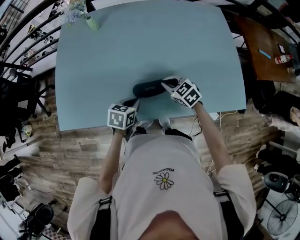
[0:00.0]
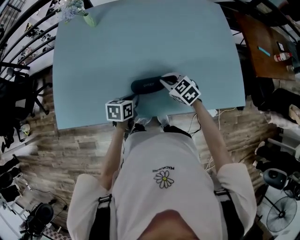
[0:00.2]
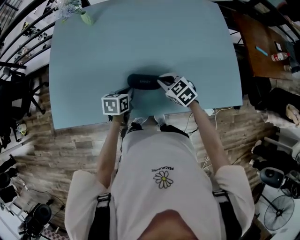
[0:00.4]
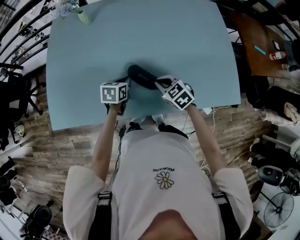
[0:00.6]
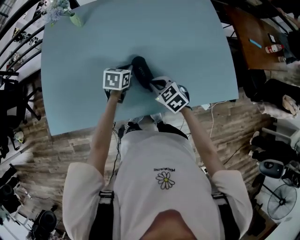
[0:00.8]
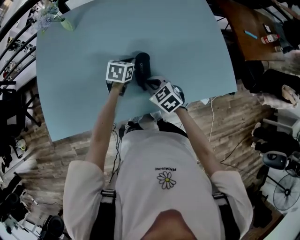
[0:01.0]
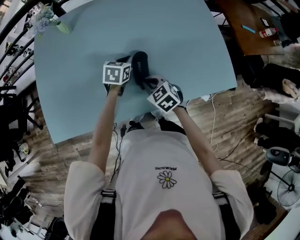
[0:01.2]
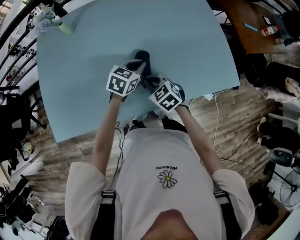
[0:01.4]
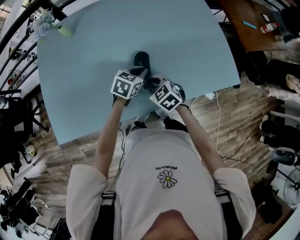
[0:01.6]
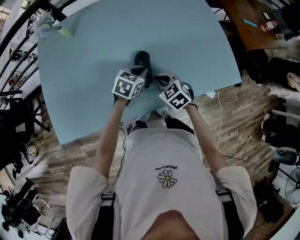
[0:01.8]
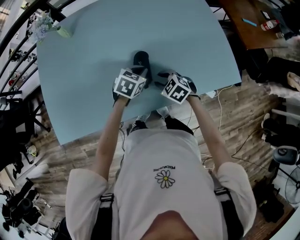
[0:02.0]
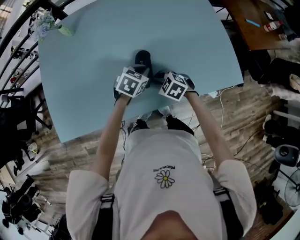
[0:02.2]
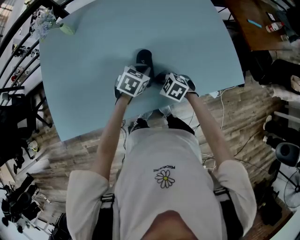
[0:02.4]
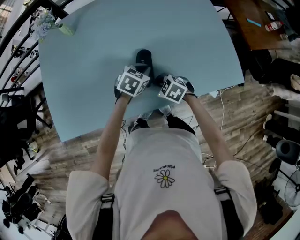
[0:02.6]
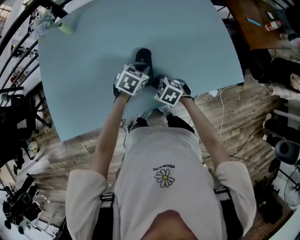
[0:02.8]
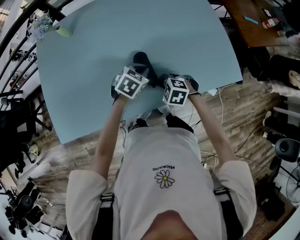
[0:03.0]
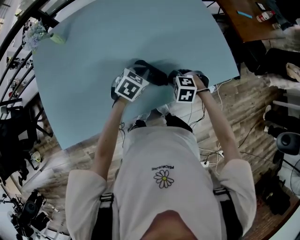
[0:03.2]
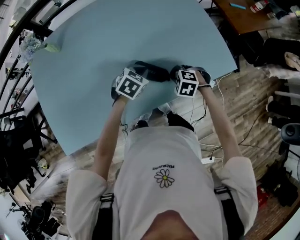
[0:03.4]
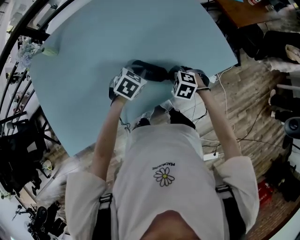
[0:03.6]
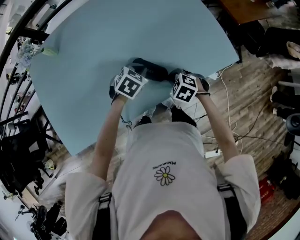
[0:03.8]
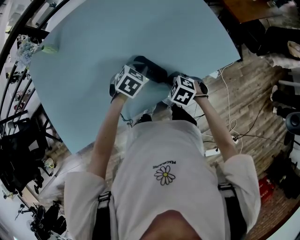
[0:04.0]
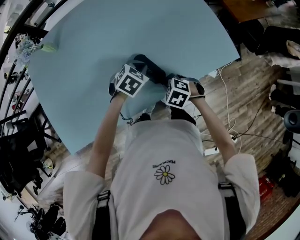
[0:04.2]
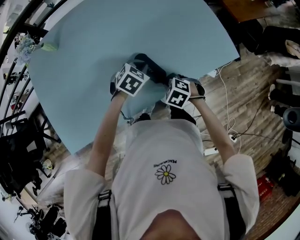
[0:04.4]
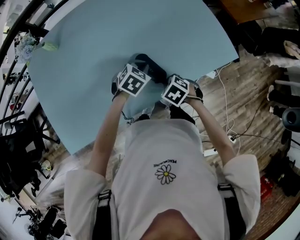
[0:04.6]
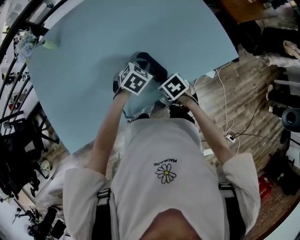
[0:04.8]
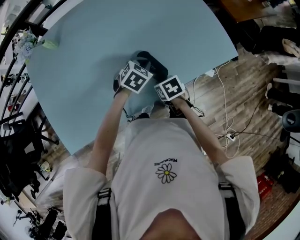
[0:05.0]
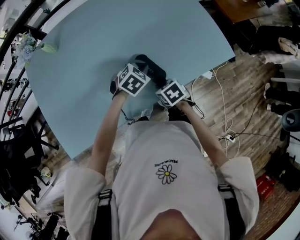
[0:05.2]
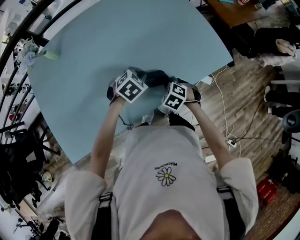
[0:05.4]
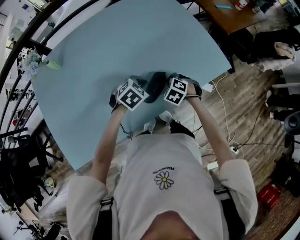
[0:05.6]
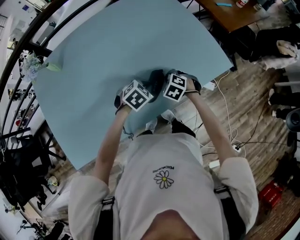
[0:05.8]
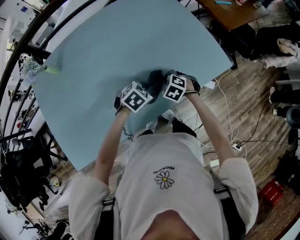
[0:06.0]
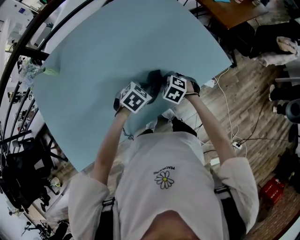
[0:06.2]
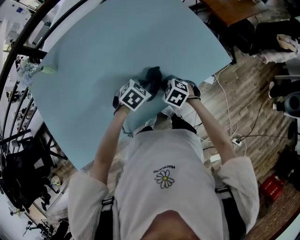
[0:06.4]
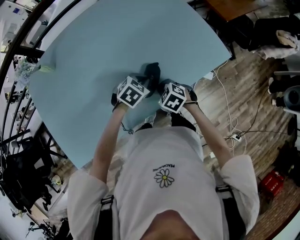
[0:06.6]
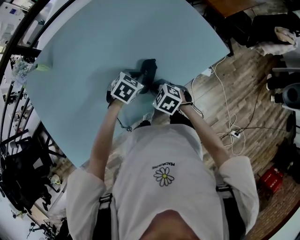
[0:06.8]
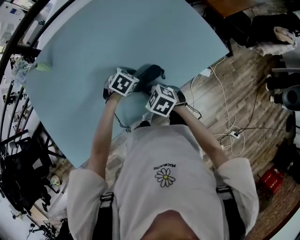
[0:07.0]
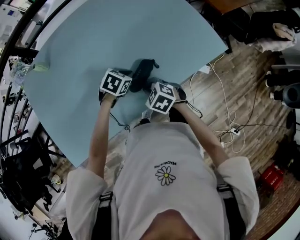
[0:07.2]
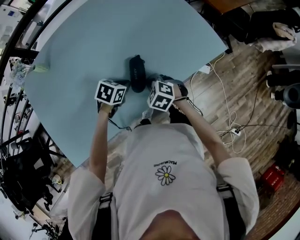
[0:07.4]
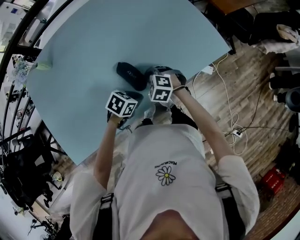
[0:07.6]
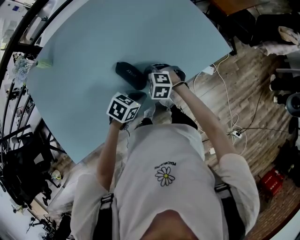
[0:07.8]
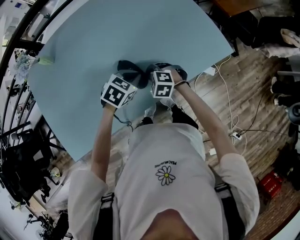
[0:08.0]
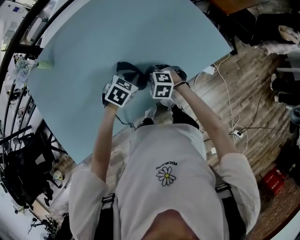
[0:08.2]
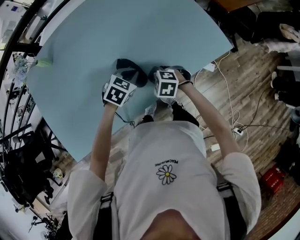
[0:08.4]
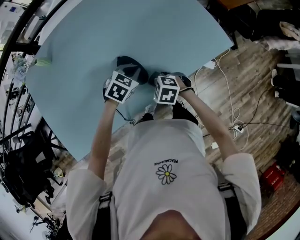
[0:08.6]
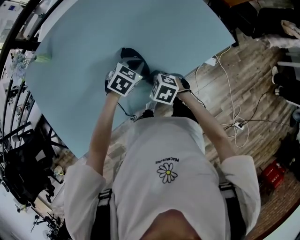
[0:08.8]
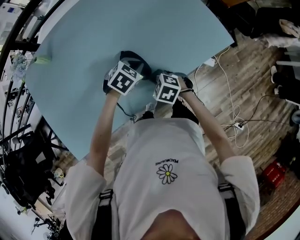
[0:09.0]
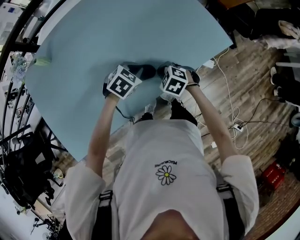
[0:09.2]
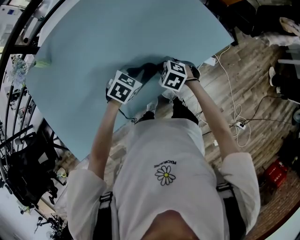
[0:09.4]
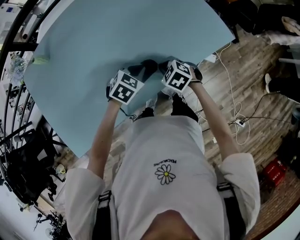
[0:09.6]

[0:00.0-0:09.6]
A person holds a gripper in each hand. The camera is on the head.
0:00.0 to 0:01.6: The left gripper is displaced to the right and forward by approximately 15 cm, and swivels about 30 degrees.
0:01.6 to 0:03.2: The right gripper goes left and right, some 10 cm each way, reversing 2 times, turns by roughly 40 degrees, and opens, then closes again.
0:03.2 to 0:04.8: The right gripper travels backward by about 5 cm, and twists some 60 degrees clockwise, seen from behind.
0:04.8 to 0:06.4: The right gripper changes its angle by some 30 degrees.
0:06.4 to 0:08.0: The right gripper changes its angle by about 20 degrees.
0:08.0 to 0:09.6: The right gripper shifts about 5 cm to the right, and swivels roughly 30 degrees.

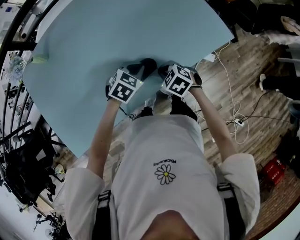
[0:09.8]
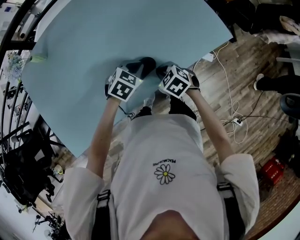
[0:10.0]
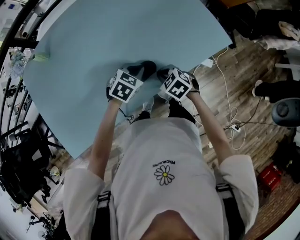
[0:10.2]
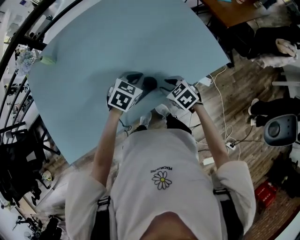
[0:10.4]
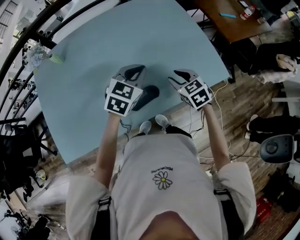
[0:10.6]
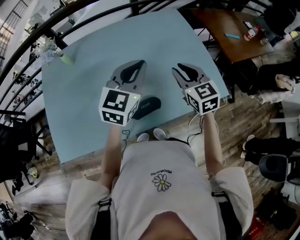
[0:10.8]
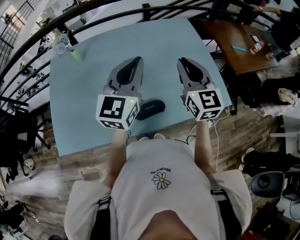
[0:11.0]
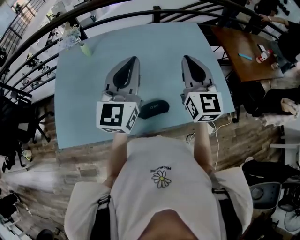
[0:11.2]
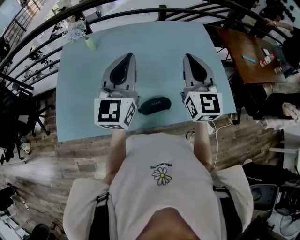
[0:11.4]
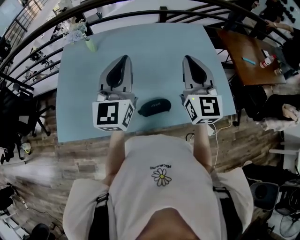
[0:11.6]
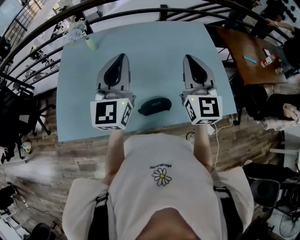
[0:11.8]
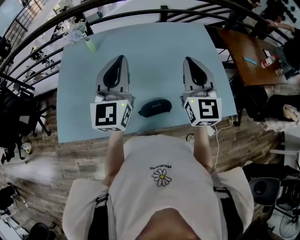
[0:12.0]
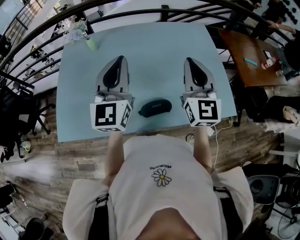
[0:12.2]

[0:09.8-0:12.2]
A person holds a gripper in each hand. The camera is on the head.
0:09.8 to 0:11.0: The two grippers go approximately 35 cm upward. The left gripper angles its fingers upward, by some 60 degrees, while the right gripper tilts its fingers approximately 60 degrees upward, and opens and closes again.
0:11.0 to 0:12.2: The left gripper goes roughly 10 cm to the left, and rotates approximately 20 degrees. The right gripper ends up roughly 5 cm from where it was.

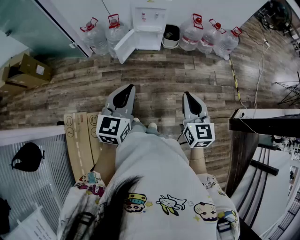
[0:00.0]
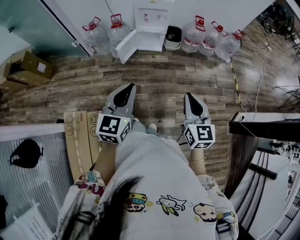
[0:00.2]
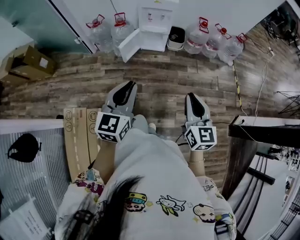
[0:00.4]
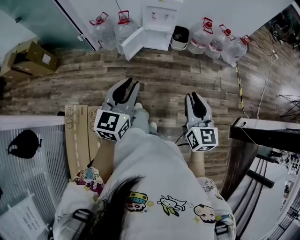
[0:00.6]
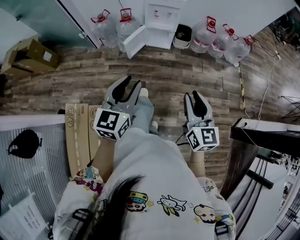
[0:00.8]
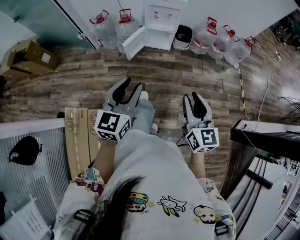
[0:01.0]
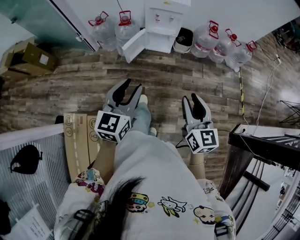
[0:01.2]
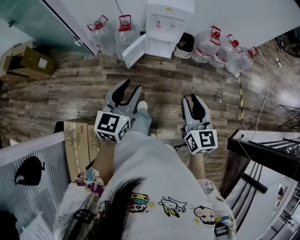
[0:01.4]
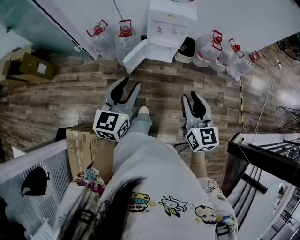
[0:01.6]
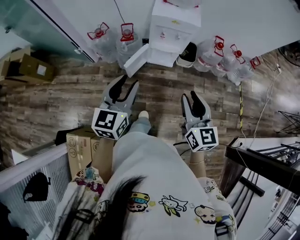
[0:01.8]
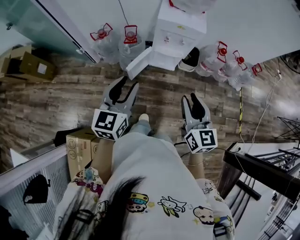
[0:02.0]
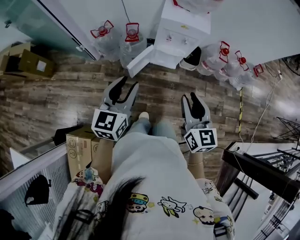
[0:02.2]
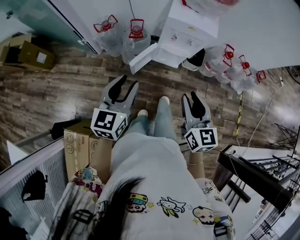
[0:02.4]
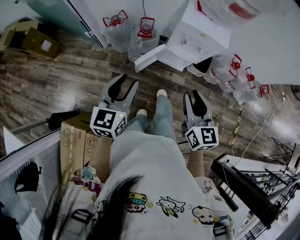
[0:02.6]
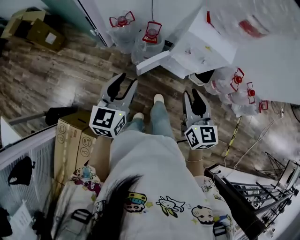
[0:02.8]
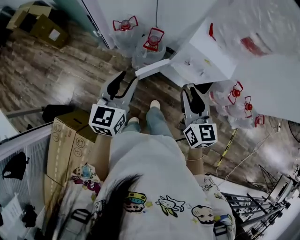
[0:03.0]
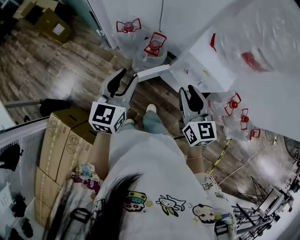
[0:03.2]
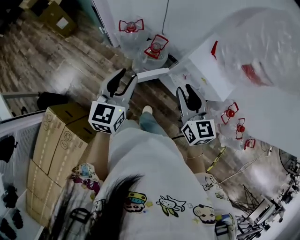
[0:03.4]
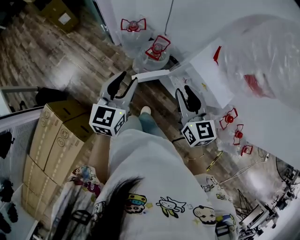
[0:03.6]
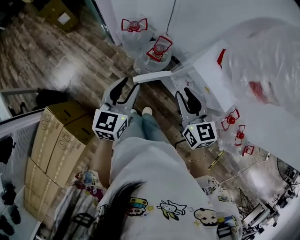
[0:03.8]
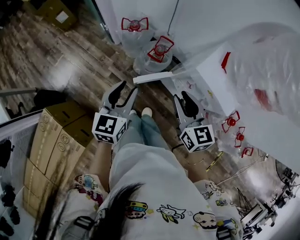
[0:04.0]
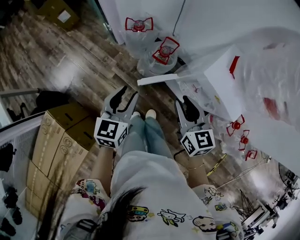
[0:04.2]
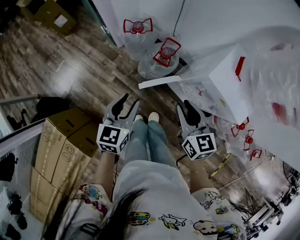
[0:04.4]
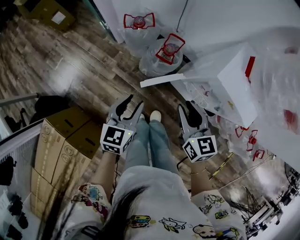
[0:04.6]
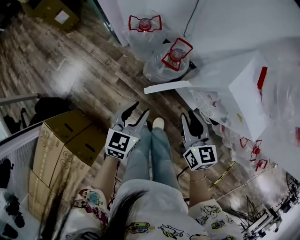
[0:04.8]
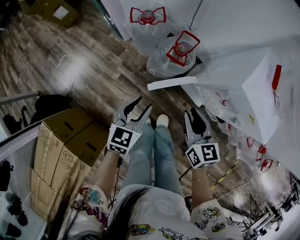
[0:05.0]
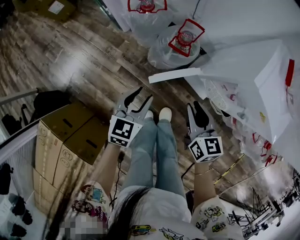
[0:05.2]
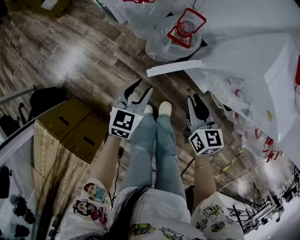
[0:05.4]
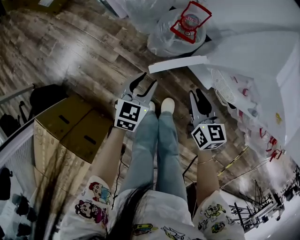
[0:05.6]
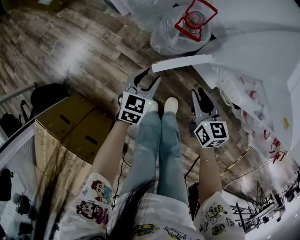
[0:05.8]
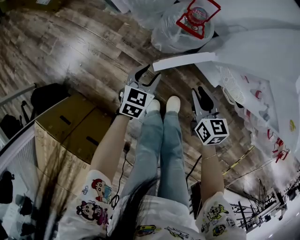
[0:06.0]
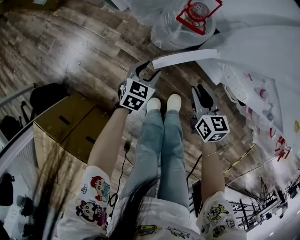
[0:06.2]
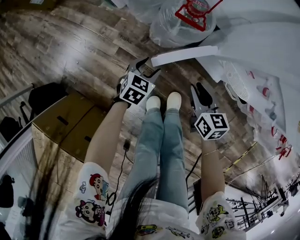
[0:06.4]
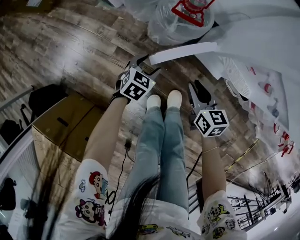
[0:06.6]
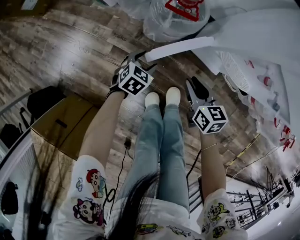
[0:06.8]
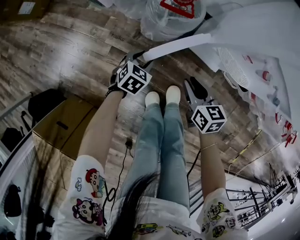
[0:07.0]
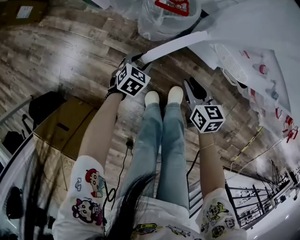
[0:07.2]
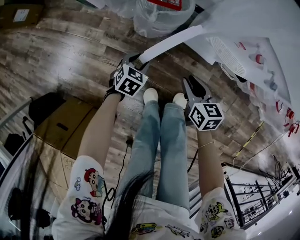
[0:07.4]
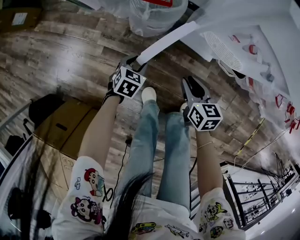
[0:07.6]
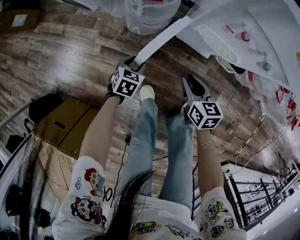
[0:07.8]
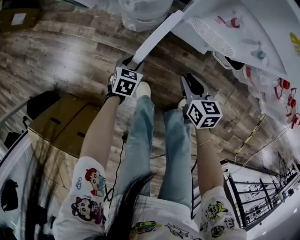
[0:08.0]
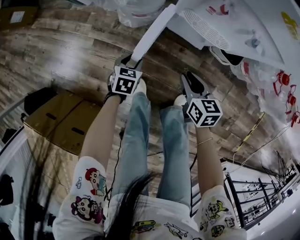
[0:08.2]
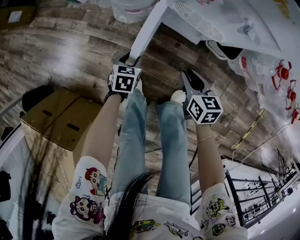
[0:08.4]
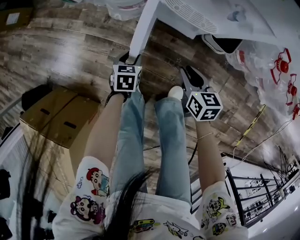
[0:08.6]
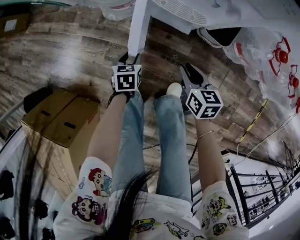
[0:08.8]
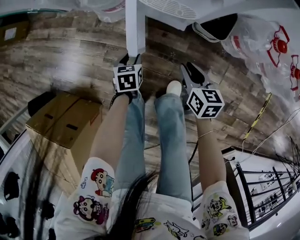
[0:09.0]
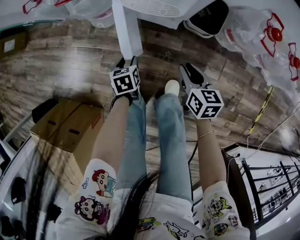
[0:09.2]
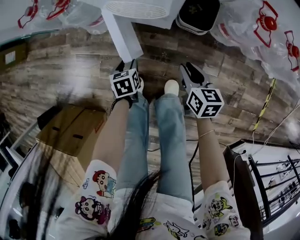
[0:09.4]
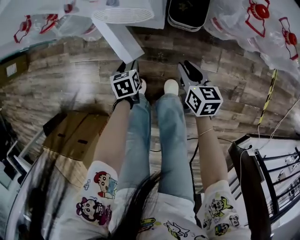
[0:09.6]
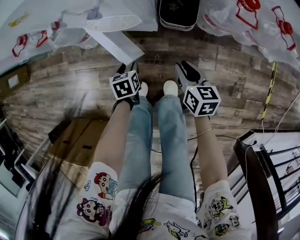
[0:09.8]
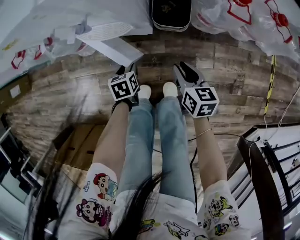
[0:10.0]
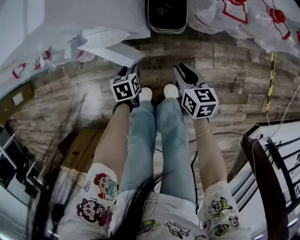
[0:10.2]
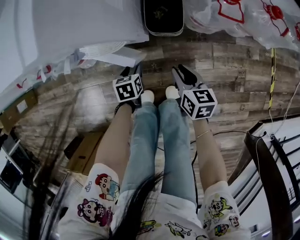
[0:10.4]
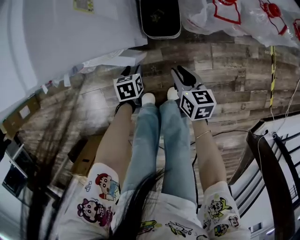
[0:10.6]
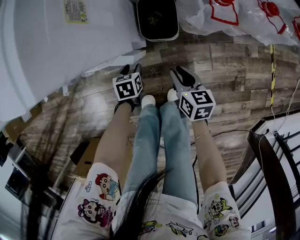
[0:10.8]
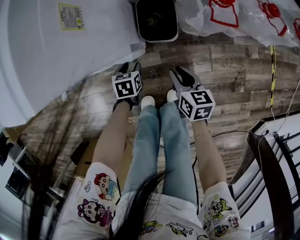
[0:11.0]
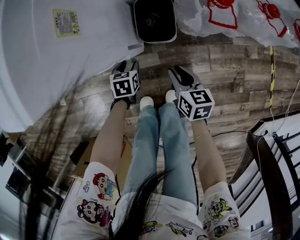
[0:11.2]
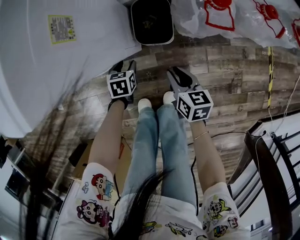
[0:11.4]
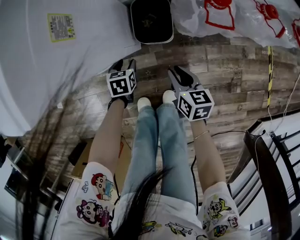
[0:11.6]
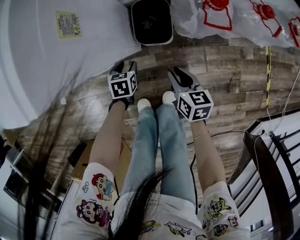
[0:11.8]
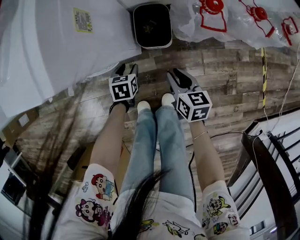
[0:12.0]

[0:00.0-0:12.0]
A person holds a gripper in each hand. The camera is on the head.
0:00.0 to 0:01.6: Both grippers travel together forward, some 25 cm. The right gripper opens. Meanwhile the left gripper opens up.
0:01.6 to 0:03.0: The left gripper heads forward and to the left, covering roughly 25 cm, and turns by approximately 20 degrees. The right gripper is displaced forward by some 30 cm, and swivels roughly 20 degrees.
0:03.0 to 0:04.4: The right gripper heads forward and downward, covering roughly 15 cm, and swivels roughly 20 degrees, while the left gripper goes approximately 15 cm downward and forward.
0:04.4 to 0:06.0: Both grippers move downward, some 35 cm. The left gripper changes its angle by approximately 20 degrees.
0:06.0 to 0:07.6: The right gripper shifts about 10 cm backward, downward and to the right. The left gripper is displaced downward by about 10 cm, and swivels approximately 20 degrees.
0:07.6 to 0:09.0: The grippers both shift to the right and backward by about 20 cm. The left gripper swivels some 30 degrees.
0:09.0 to 0:10.4: The two grippers go roughly 15 cm to the right. The right gripper changes its angle by some 20 degrees.
0:10.4 to 0:12.0: The right gripper moves about 5 cm, while the left gripper is displaced forward by about 10 cm.
